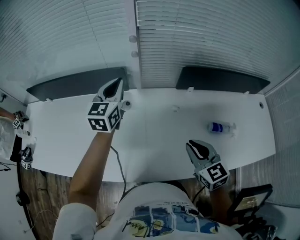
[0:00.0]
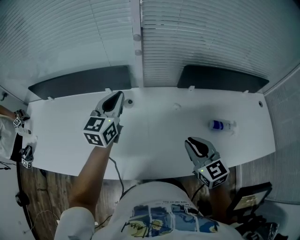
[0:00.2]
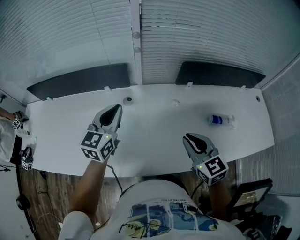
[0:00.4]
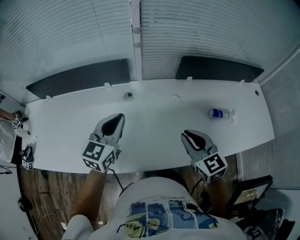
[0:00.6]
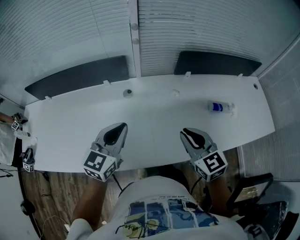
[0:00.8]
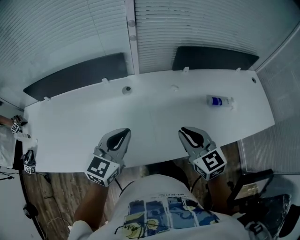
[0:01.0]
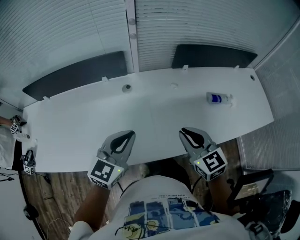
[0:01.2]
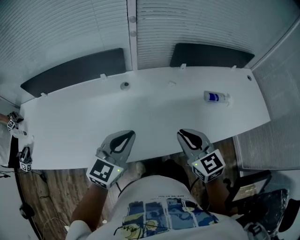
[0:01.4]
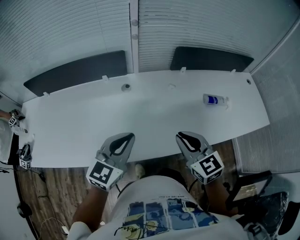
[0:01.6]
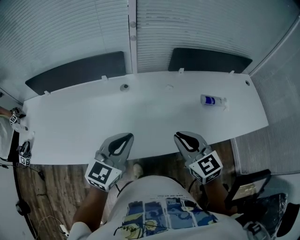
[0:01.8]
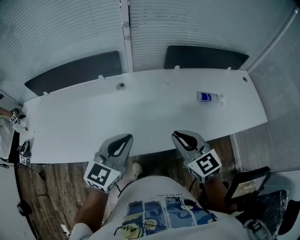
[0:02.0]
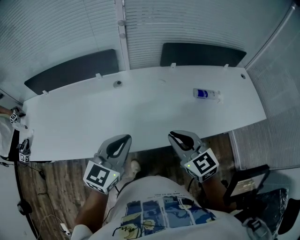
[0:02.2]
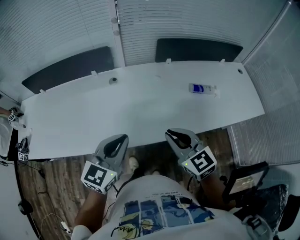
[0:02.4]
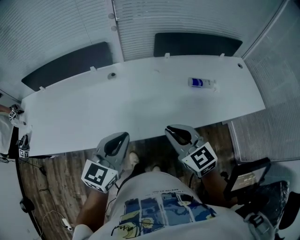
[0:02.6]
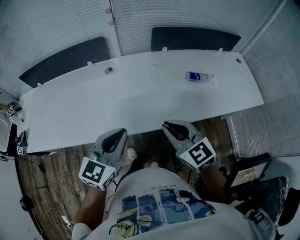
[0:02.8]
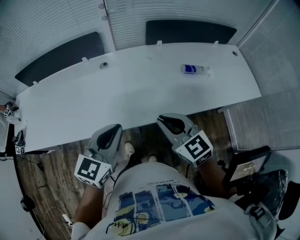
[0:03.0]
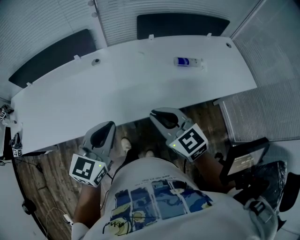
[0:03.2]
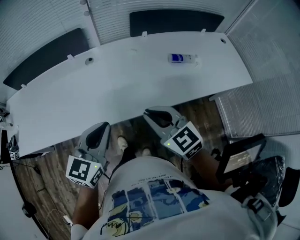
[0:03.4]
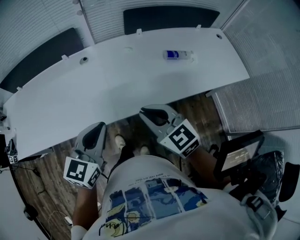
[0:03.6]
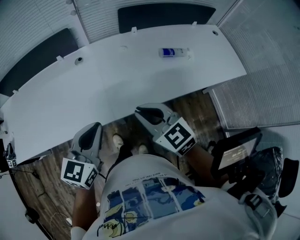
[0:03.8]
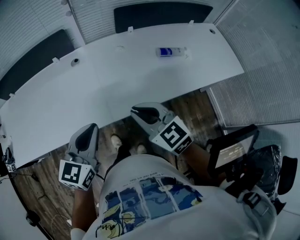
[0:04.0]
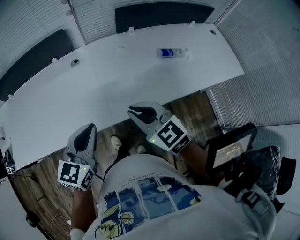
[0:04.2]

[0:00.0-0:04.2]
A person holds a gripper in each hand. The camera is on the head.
0:00.0 to 0:01.4: The left gripper heads backward, covering about 30 cm, and rotates some 30 degrees, while the right gripper moves backward and to the left, some 15 cm.
0:01.4 to 0:02.8: The two grippers go some 15 cm backward and to the right.
0:02.8 to 0:04.2: The grippers stay close to where they were, moving slightly.

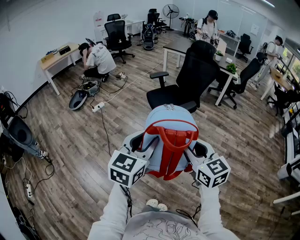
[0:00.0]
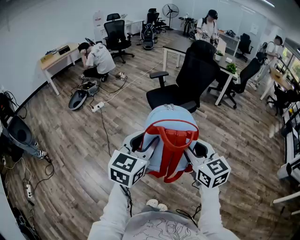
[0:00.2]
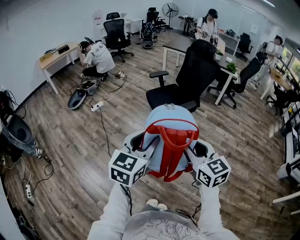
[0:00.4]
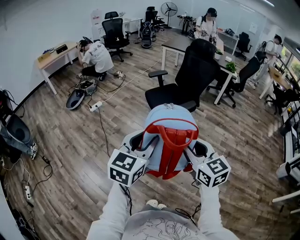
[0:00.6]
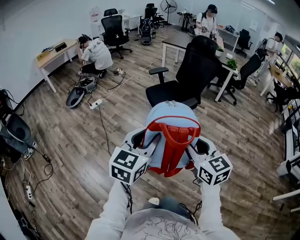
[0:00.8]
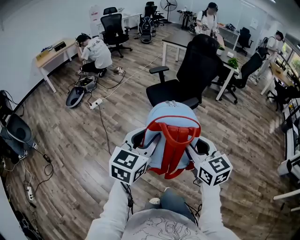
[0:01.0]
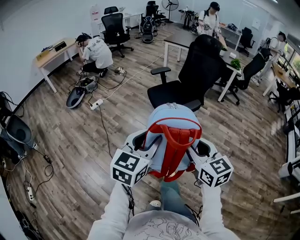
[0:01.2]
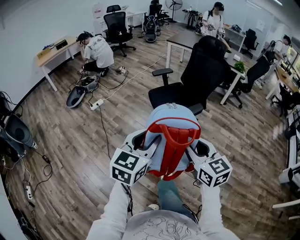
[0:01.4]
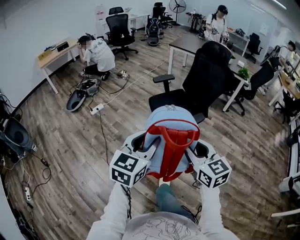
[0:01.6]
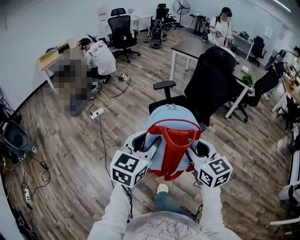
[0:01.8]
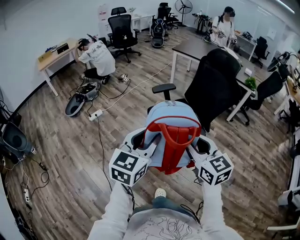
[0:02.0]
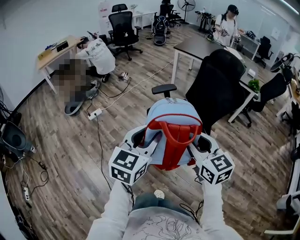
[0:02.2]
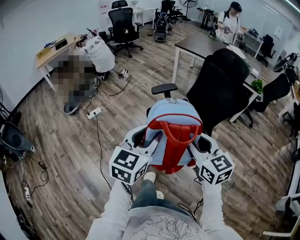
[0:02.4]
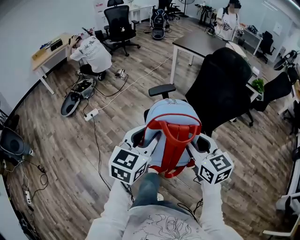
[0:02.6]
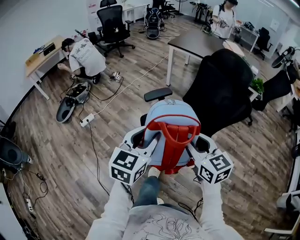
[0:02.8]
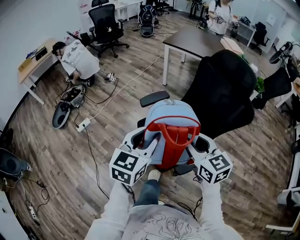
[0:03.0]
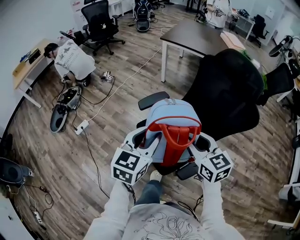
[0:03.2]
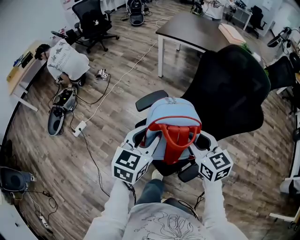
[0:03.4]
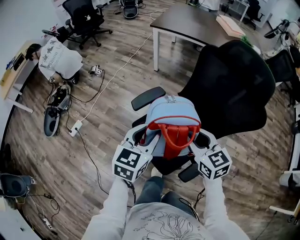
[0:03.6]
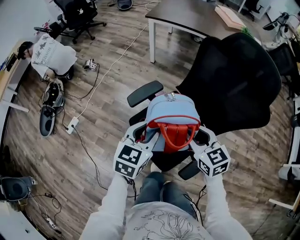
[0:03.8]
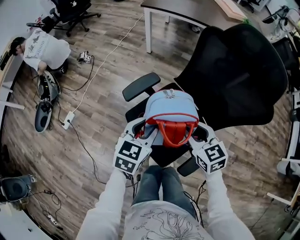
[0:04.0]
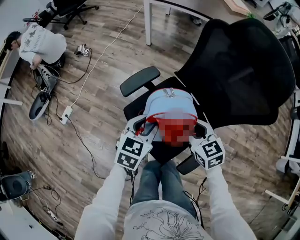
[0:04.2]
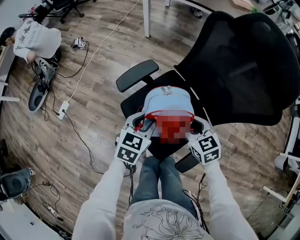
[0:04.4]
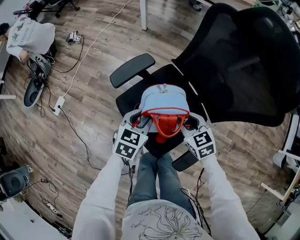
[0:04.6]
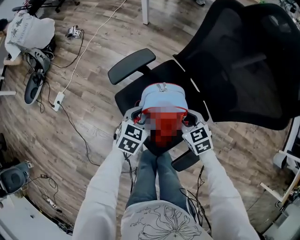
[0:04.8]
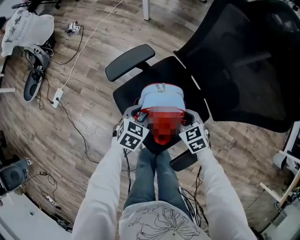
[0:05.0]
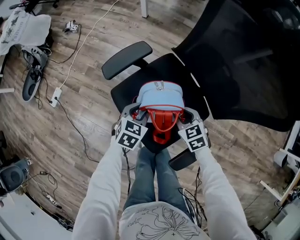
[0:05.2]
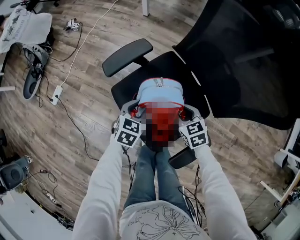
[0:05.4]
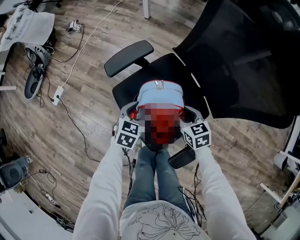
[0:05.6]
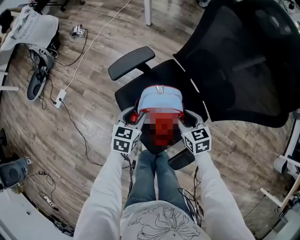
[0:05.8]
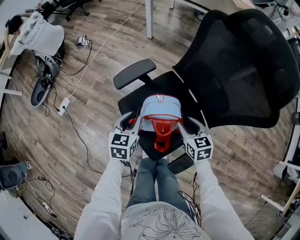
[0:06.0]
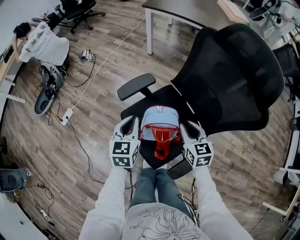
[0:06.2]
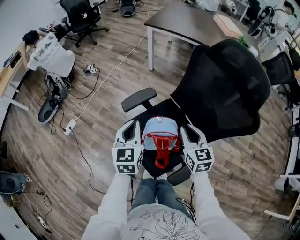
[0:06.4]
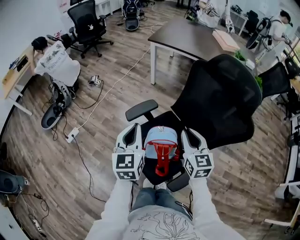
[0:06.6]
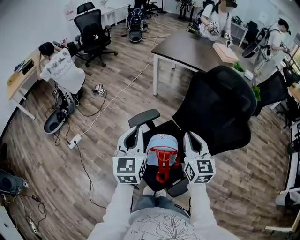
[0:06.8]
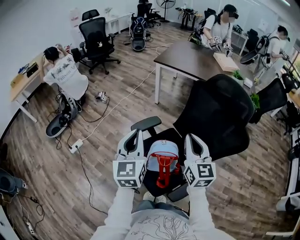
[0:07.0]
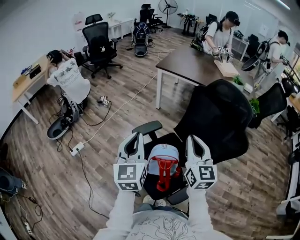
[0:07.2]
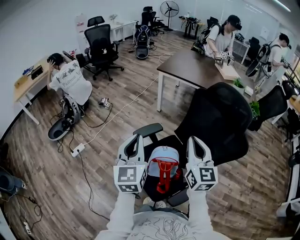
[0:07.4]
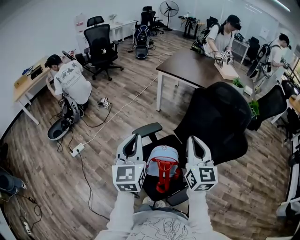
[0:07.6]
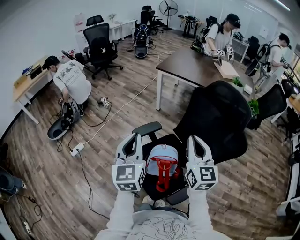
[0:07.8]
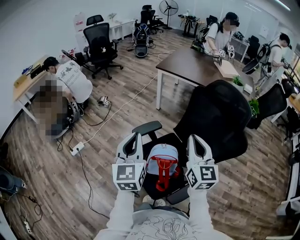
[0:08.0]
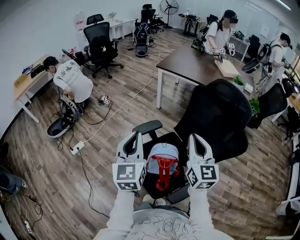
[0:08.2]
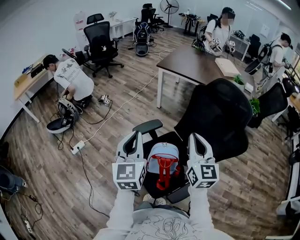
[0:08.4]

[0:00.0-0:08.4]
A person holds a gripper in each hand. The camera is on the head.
0:00.0 to 0:01.4: The grippers both shift forward by approximately 15 cm.
0:01.4 to 0:02.8: The two grippers travel together, forward, some 50 cm.
0:02.8 to 0:04.2: The two grippers go some 35 cm forward and downward. The right gripper rotates approximately 20 degrees. The left gripper swivels about 30 degrees.
0:04.2 to 0:05.6: The two grippers go about 20 cm downward.
0:05.6 to 0:07.0: Both grippers travel together upward, approximately 40 cm. The left gripper tips its fingers upward by some 40 degrees, and closes its fingers. The right gripper tilts its fingers approximately 40 degrees upward, and closes up.
0:07.0 to 0:08.4: The grippers make only small movements.

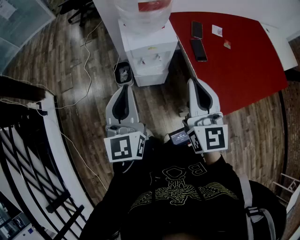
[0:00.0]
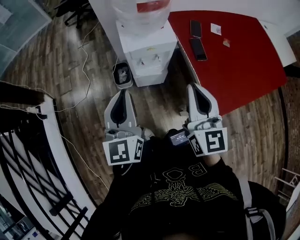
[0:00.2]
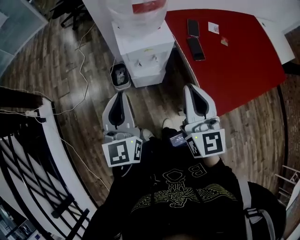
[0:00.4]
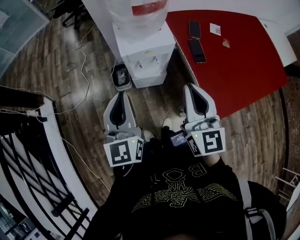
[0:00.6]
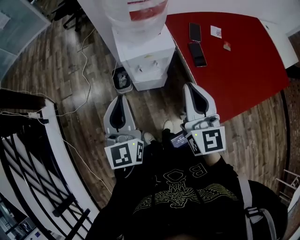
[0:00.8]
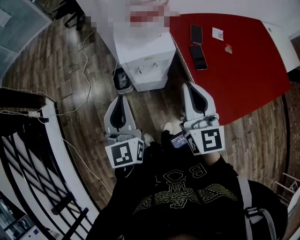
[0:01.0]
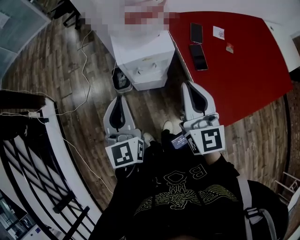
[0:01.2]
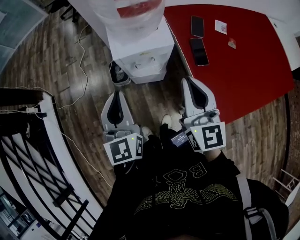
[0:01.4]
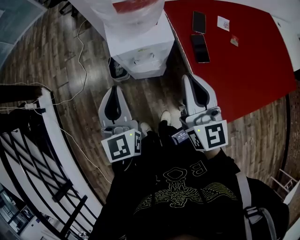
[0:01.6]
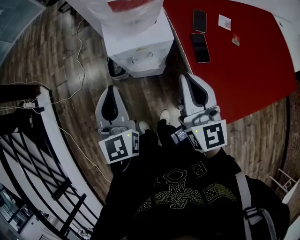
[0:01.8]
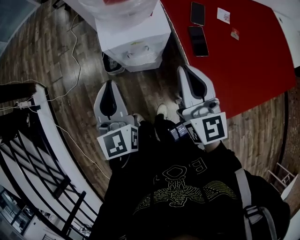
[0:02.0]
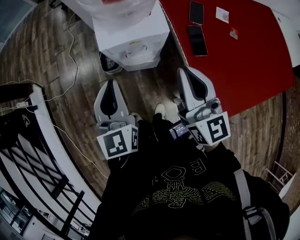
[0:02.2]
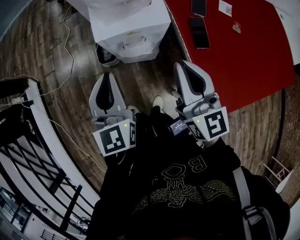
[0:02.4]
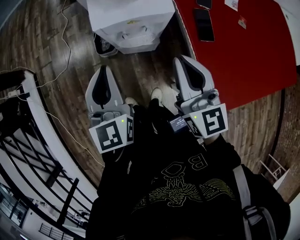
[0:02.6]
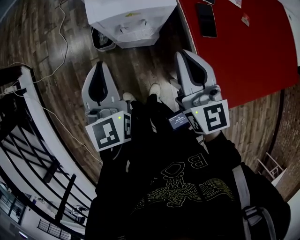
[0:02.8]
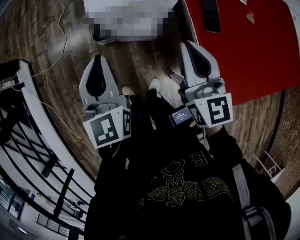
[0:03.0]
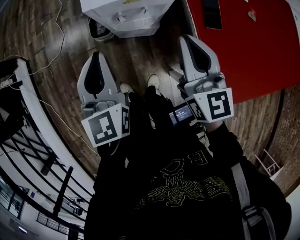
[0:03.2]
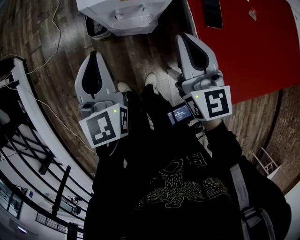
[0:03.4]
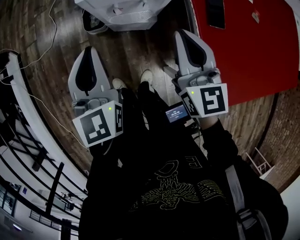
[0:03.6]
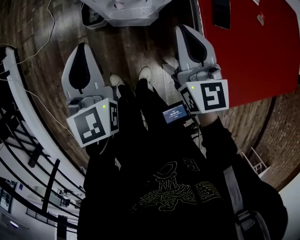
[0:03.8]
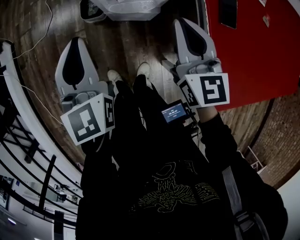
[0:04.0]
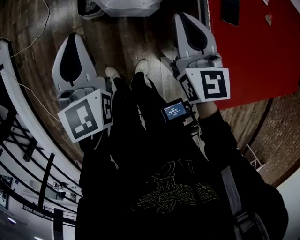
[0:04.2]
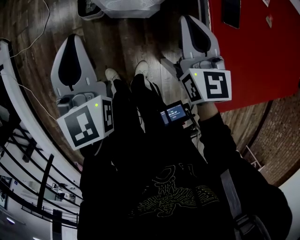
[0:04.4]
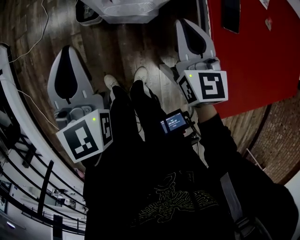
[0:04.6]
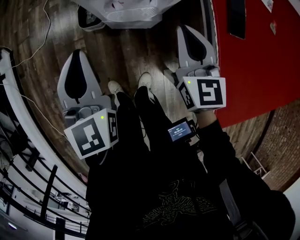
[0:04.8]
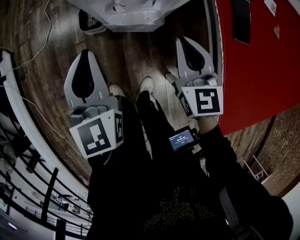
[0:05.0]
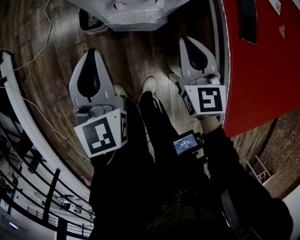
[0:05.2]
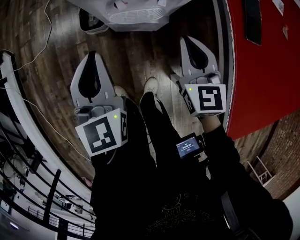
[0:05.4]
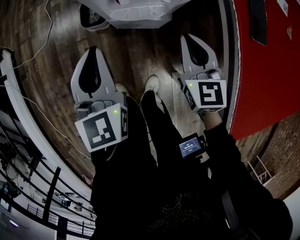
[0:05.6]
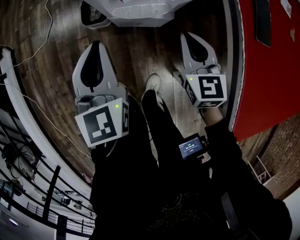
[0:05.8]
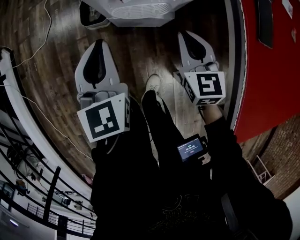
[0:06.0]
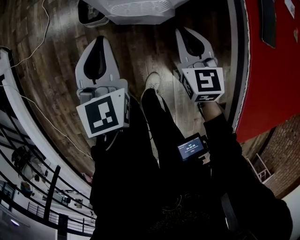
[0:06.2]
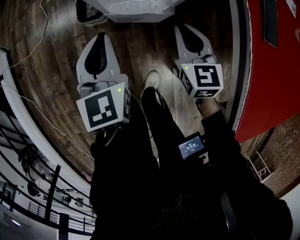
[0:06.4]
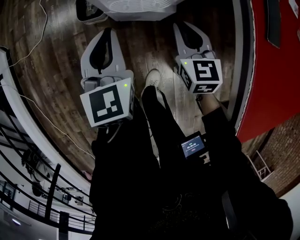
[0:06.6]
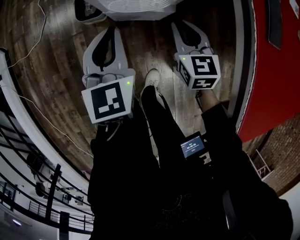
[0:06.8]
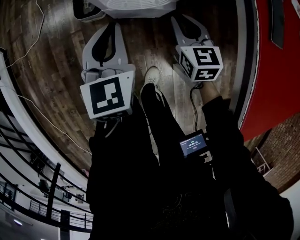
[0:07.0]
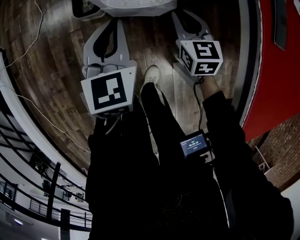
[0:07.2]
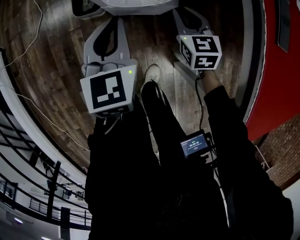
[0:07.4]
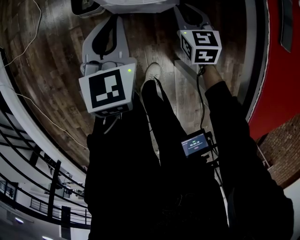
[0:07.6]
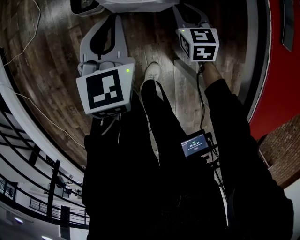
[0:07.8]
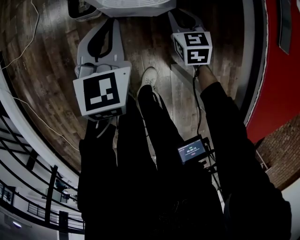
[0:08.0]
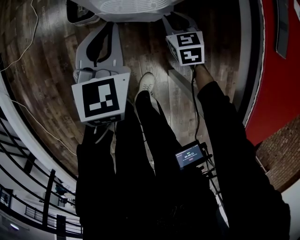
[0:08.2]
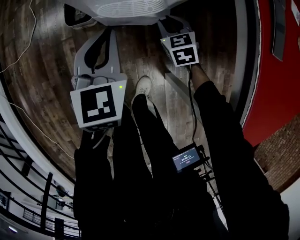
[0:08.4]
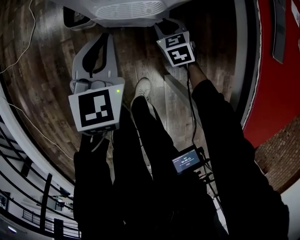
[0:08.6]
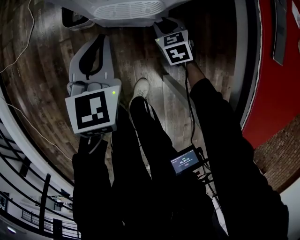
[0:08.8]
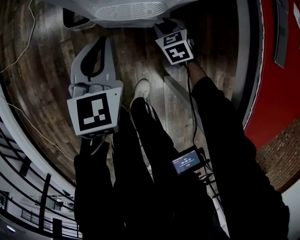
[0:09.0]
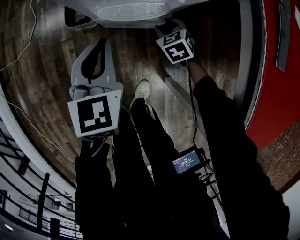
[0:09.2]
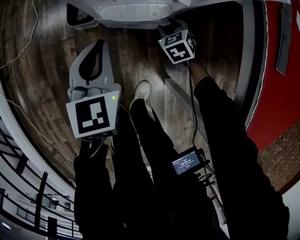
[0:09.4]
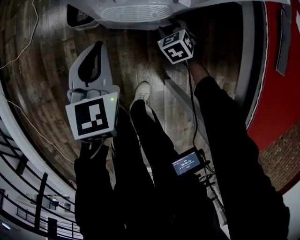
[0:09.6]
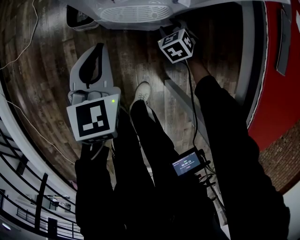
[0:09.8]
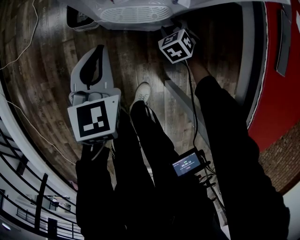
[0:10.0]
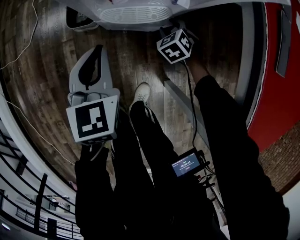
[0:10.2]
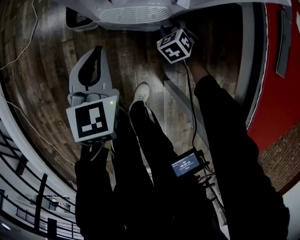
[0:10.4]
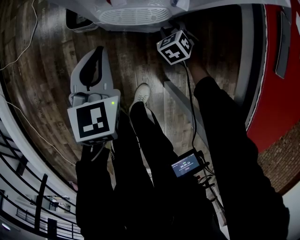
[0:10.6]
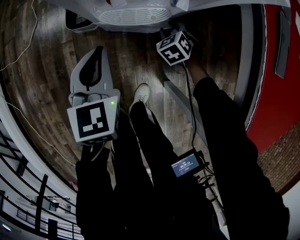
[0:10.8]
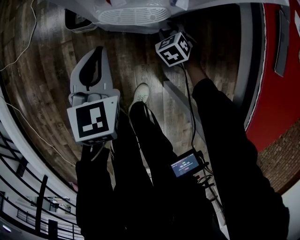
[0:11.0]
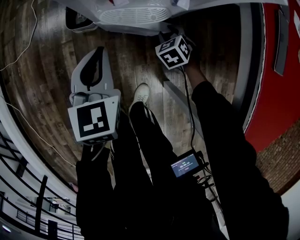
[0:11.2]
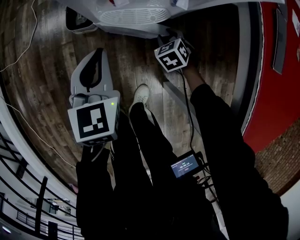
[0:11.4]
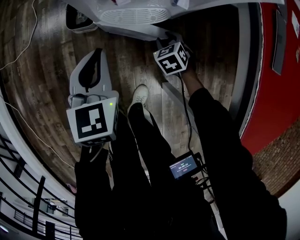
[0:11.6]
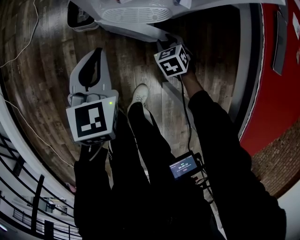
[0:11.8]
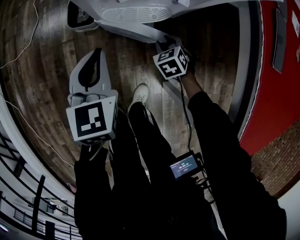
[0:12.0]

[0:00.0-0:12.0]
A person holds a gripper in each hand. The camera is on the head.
0:00.0 to 0:01.6: Both grippers move forward and downward, roughly 10 cm.
0:01.6 to 0:03.0: Both grippers move downward, approximately 10 cm.
0:03.0 to 0:04.4: The right gripper travels downward by roughly 10 cm. The left gripper goes roughly 5 cm downward.
0:04.4 to 0:06.0: The two grippers go about 15 cm downward.
0:06.0 to 0:07.6: The left gripper travels downward by roughly 5 cm, while the right gripper moves downward and forward, approximately 15 cm.
0:07.6 to 0:09.0: The right gripper moves downward, roughly 10 cm, and rotates some 20 degrees.
0:09.0 to 0:10.4: The grippers move only a little.
0:10.4 to 0:12.0: The right gripper heads backward, covering approximately 5 cm.
